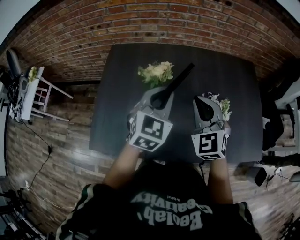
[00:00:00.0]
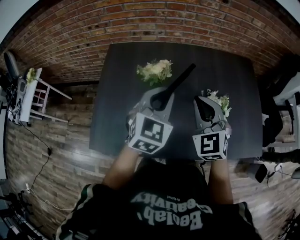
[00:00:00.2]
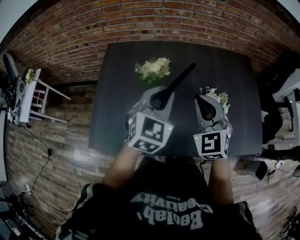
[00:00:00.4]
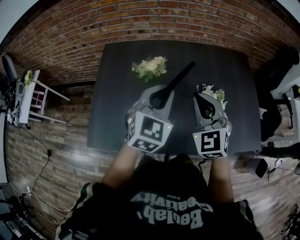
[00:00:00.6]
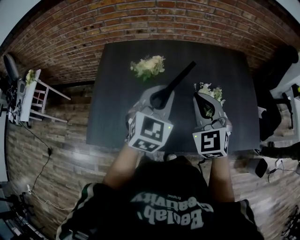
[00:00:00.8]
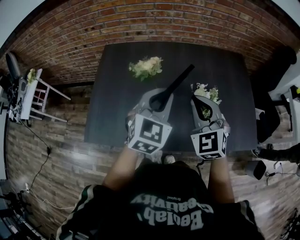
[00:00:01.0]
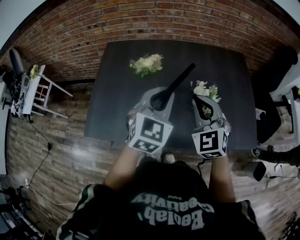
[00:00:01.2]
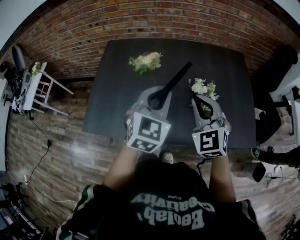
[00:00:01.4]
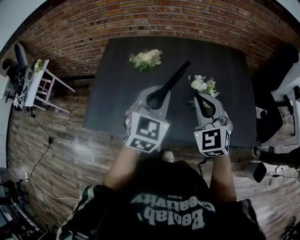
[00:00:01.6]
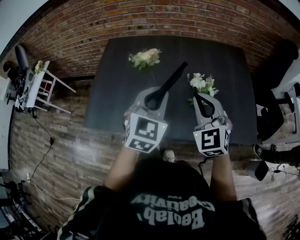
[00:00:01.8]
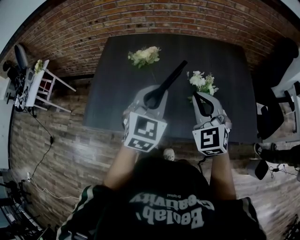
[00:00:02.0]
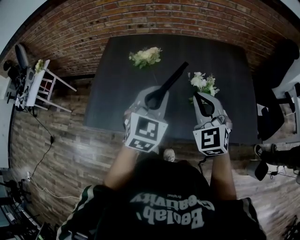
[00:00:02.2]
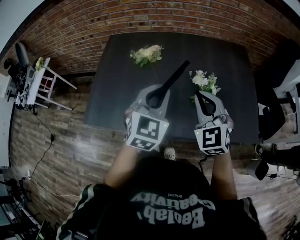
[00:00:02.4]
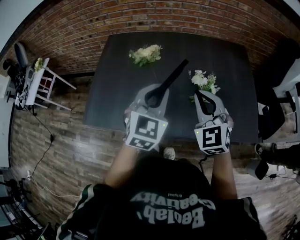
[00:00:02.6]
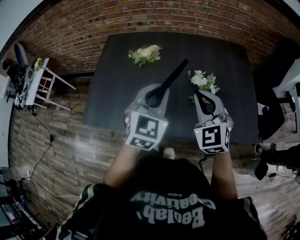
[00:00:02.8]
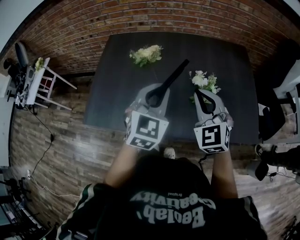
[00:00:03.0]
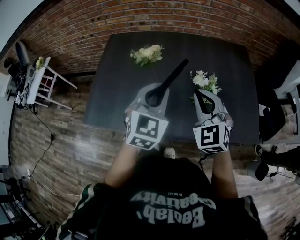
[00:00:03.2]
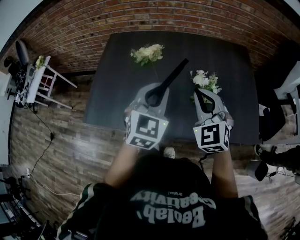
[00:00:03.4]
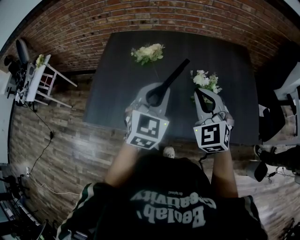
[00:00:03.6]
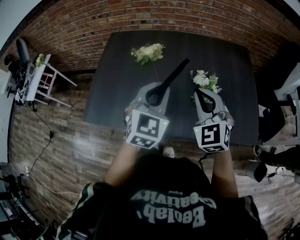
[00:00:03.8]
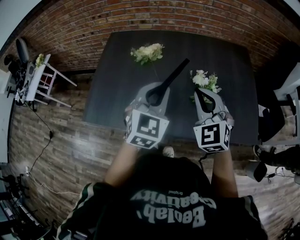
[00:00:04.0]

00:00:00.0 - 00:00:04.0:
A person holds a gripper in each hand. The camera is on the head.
00:00:00.0 - 00:00:01.4: Both grippers move backward and to the right, approximately 15 cm.
00:00:01.4 - 00:00:02.6: The grippers make only small movements.
00:00:02.6 - 00:00:04.0: Both grippers stay put.

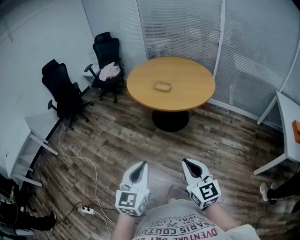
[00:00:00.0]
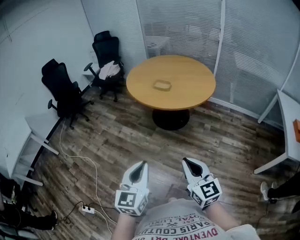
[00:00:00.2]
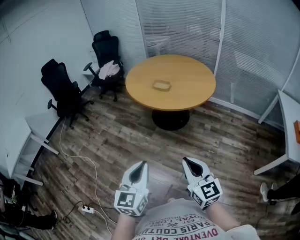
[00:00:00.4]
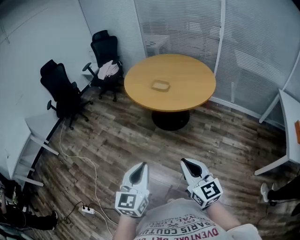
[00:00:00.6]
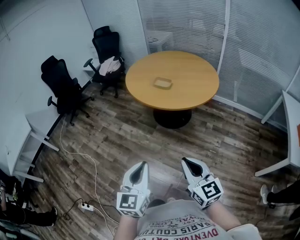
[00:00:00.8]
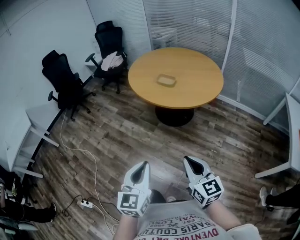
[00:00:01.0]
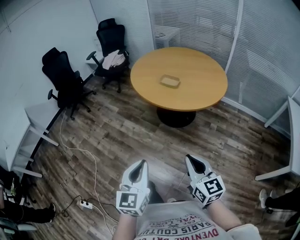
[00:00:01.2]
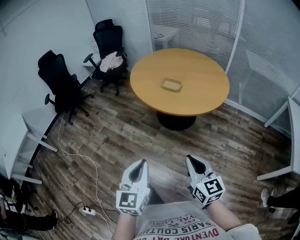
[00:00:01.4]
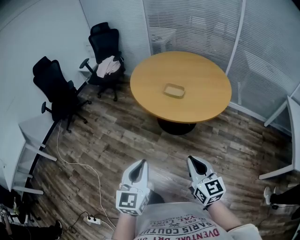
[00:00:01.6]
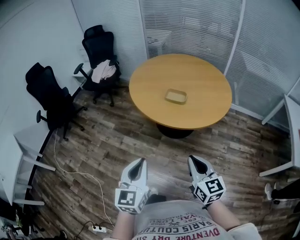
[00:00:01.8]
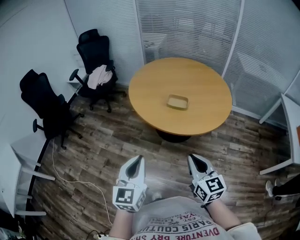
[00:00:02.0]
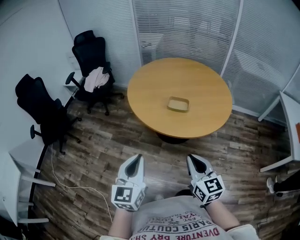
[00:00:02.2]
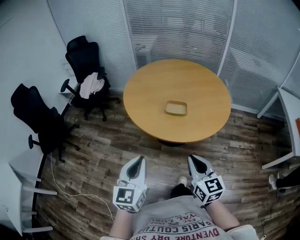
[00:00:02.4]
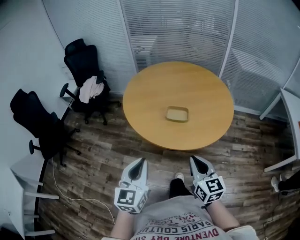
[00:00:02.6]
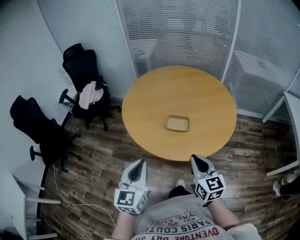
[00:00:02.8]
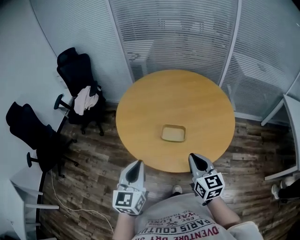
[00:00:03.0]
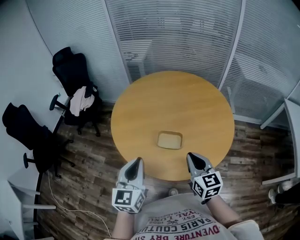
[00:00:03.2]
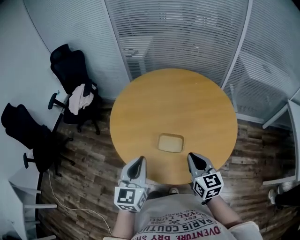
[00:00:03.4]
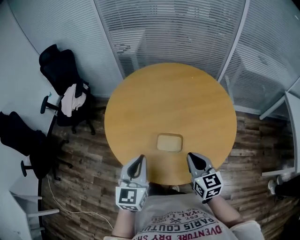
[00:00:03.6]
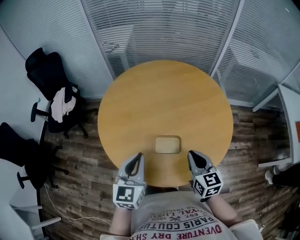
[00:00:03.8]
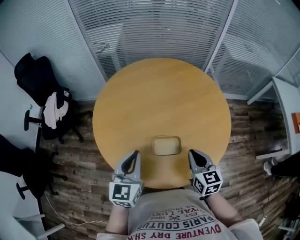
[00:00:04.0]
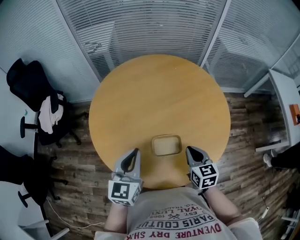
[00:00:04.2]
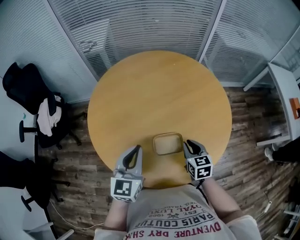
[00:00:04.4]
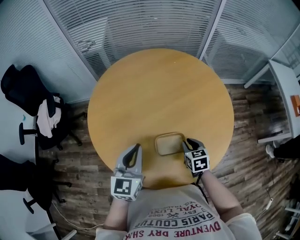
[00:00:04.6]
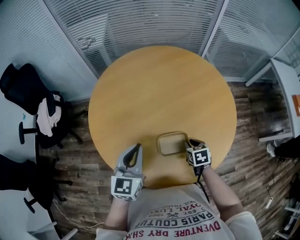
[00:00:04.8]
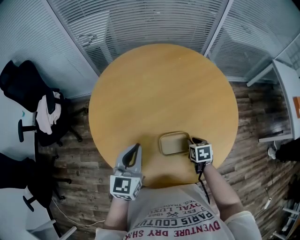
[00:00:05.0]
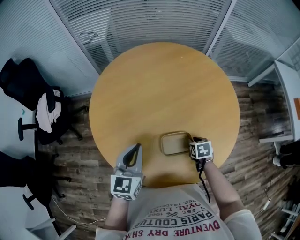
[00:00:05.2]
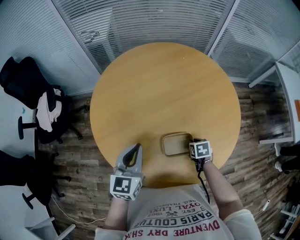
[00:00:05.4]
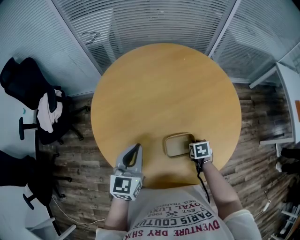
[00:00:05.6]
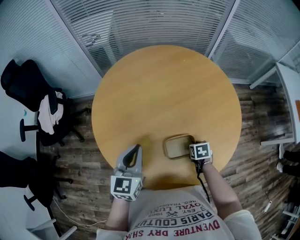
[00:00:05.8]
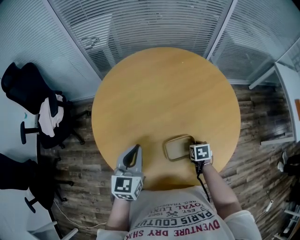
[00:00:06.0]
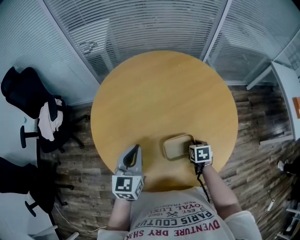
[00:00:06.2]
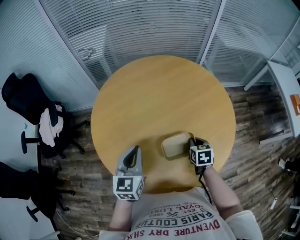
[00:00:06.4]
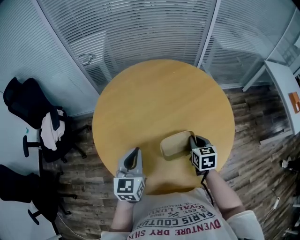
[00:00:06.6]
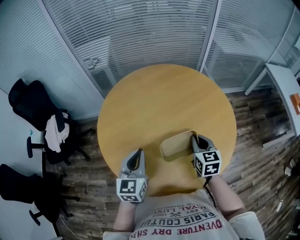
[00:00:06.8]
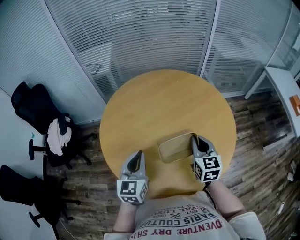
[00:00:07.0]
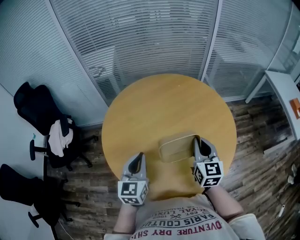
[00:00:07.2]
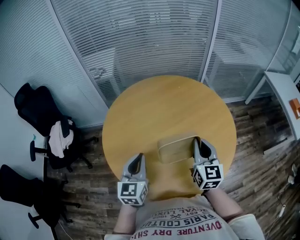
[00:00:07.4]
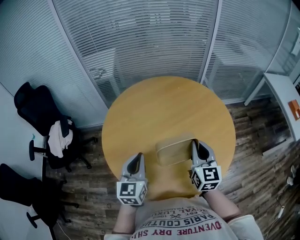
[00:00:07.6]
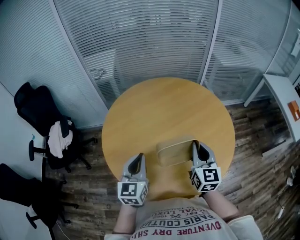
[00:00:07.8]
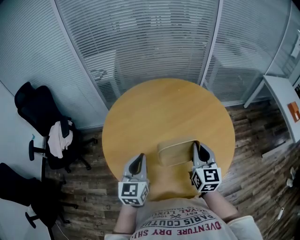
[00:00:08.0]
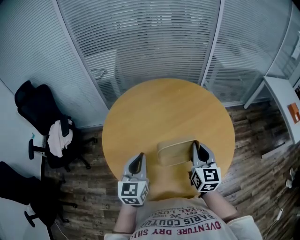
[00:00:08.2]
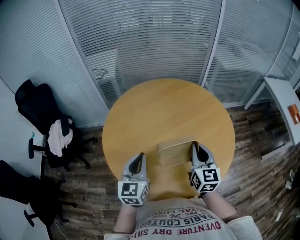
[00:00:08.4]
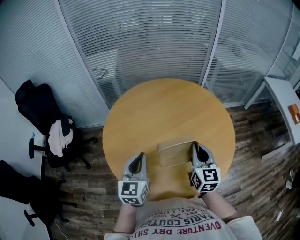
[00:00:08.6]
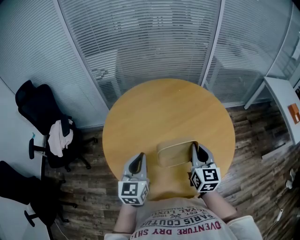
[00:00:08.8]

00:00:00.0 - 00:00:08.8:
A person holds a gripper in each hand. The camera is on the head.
00:00:00.0 - 00:00:01.4: The two grippers go about 20 cm forward.
00:00:01.4 - 00:00:03.0: Both grippers are carried forward, roughly 50 cm.
00:00:03.0 - 00:00:04.4: The left gripper goes approximately 30 cm forward, and turns by roughly 20 degrees, while the right gripper heads forward and downward, covering approximately 30 cm, and turns by roughly 30 degrees.
00:00:04.4 - 00:00:05.8: The right gripper is displaced downward by some 15 cm, and tips its fingers downward by about 30 degrees. Meanwhile the left gripper shifts by about 10 cm.
00:00:05.8 - 00:00:07.4: The left gripper moves upward, some 5 cm, while the right gripper moves upward, some 30 cm, and points its fingers some 60 degrees further upward.
00:00:07.4 - 00:00:08.8: The grippers make only small movements.

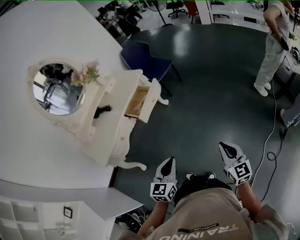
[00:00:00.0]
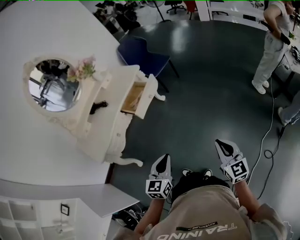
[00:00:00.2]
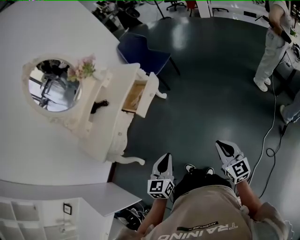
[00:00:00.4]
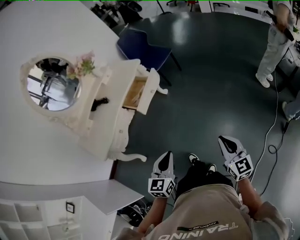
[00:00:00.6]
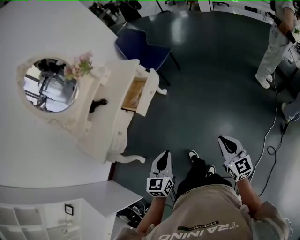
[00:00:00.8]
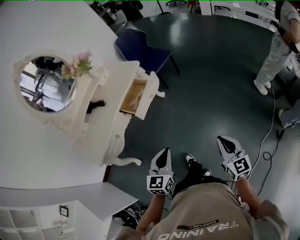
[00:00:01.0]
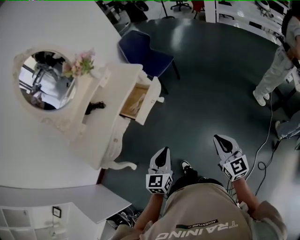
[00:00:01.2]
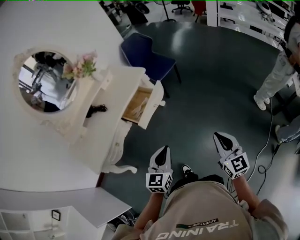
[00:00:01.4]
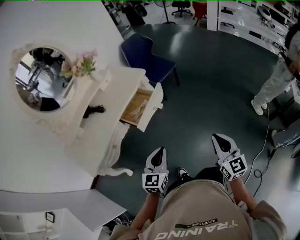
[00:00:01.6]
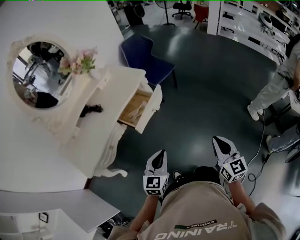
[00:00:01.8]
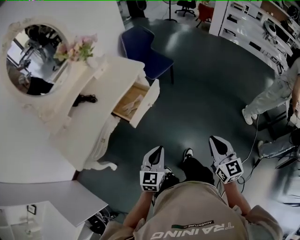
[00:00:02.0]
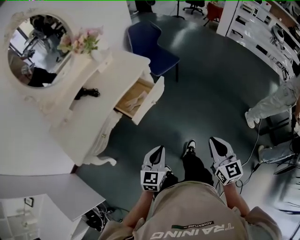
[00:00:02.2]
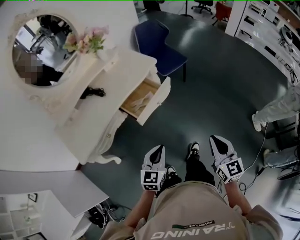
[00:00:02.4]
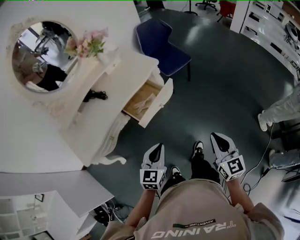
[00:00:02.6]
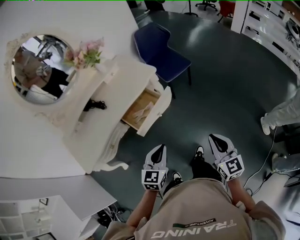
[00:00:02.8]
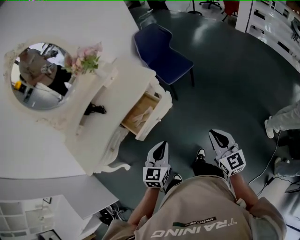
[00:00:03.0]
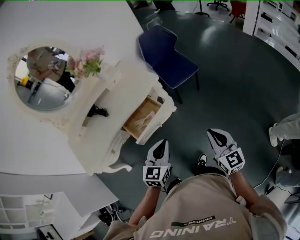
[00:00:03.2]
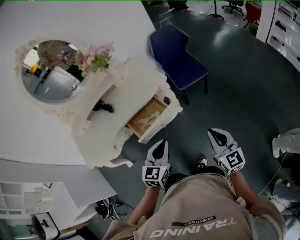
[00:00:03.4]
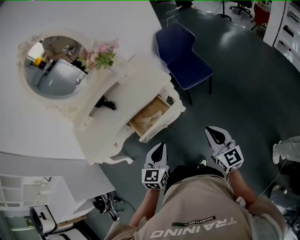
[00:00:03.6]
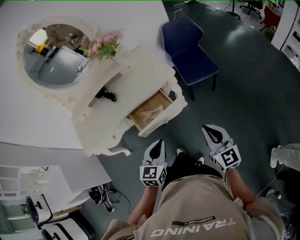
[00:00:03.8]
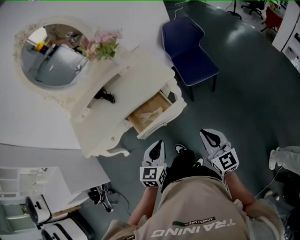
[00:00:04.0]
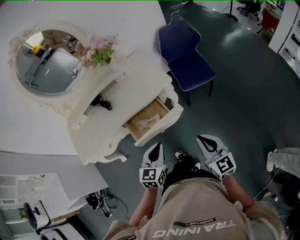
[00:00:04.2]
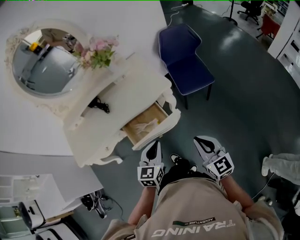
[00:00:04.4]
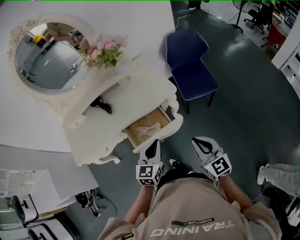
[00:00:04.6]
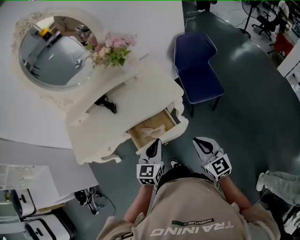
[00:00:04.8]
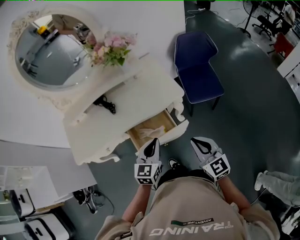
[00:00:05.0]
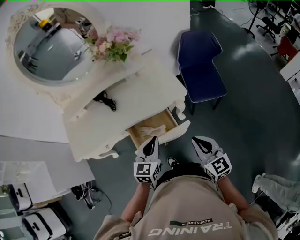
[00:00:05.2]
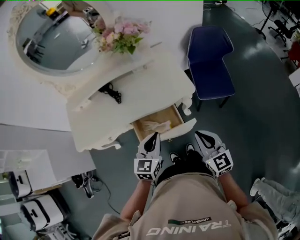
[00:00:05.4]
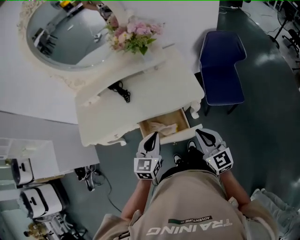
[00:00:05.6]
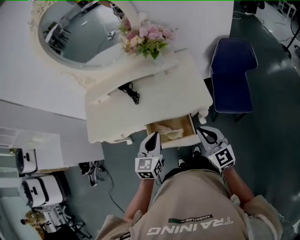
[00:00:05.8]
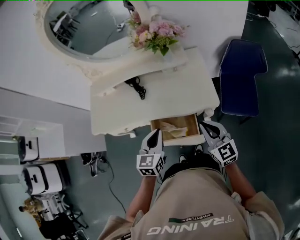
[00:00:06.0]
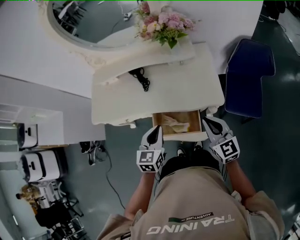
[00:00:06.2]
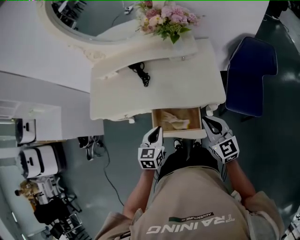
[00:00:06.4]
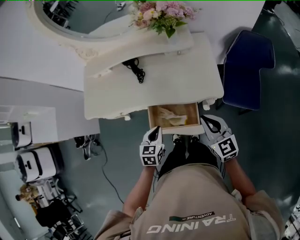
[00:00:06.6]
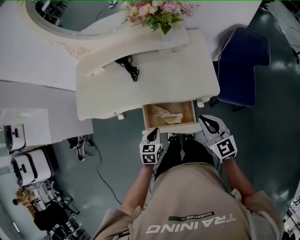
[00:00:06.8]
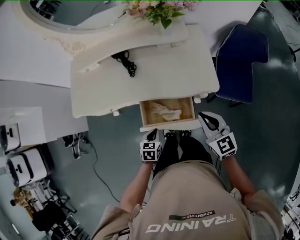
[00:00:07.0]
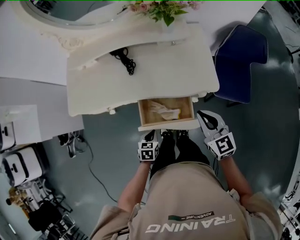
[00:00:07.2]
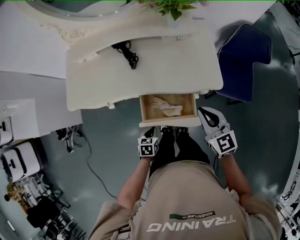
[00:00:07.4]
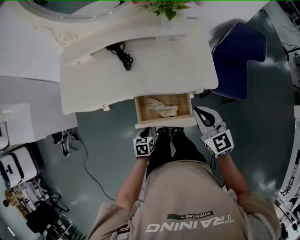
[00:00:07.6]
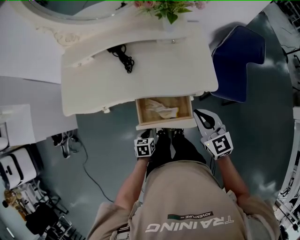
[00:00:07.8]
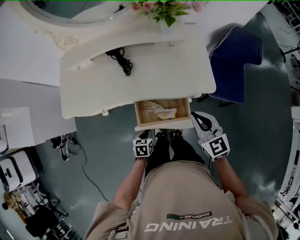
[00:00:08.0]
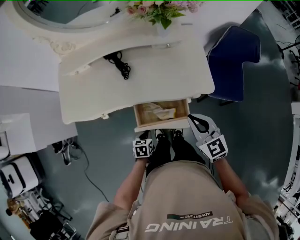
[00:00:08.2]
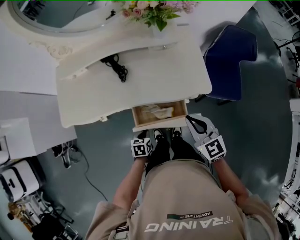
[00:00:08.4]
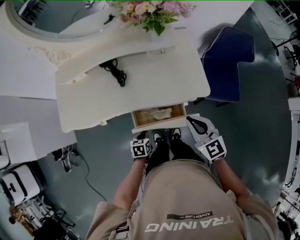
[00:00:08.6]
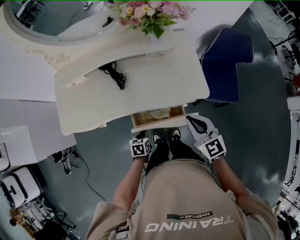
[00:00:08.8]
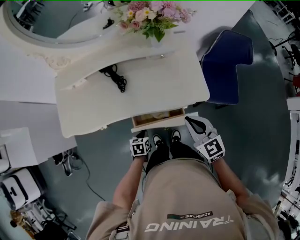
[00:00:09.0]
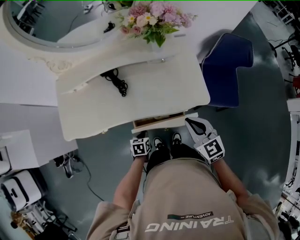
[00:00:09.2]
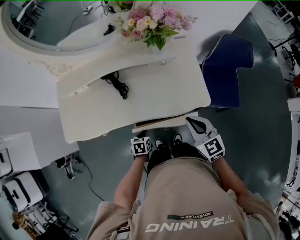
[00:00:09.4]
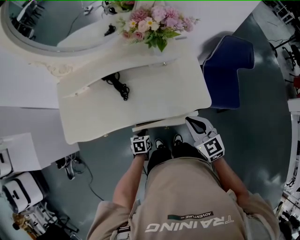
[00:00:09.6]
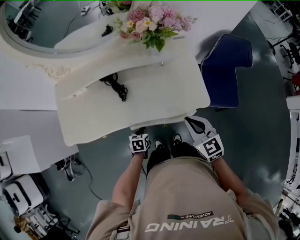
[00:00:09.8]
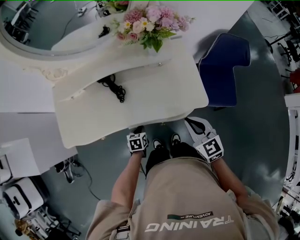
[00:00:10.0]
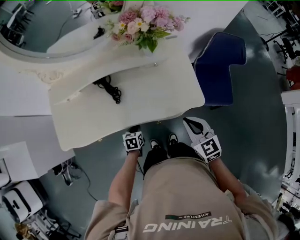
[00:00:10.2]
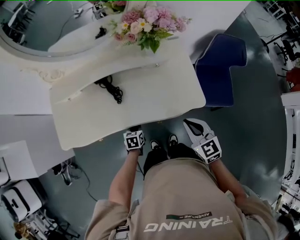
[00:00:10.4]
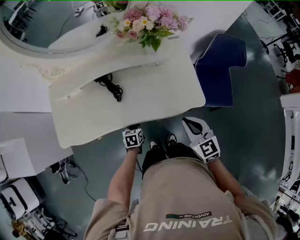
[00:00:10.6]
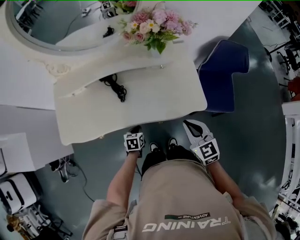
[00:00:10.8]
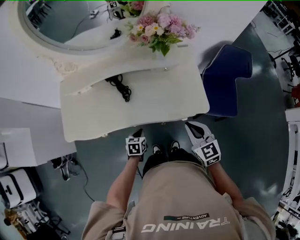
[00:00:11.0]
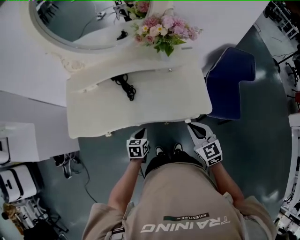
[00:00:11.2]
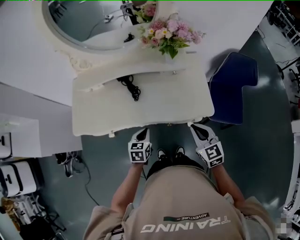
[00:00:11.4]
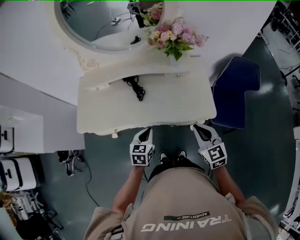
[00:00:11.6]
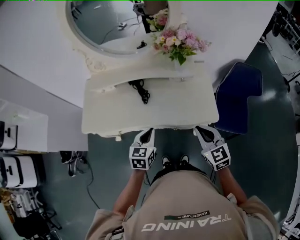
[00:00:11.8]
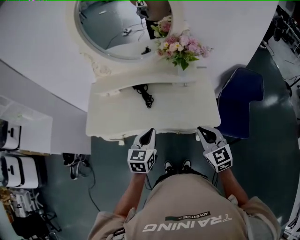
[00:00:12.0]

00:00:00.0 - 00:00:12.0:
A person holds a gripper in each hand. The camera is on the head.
00:00:00.0 - 00:00:01.6: The grippers both shift forward by about 20 cm.
00:00:01.6 - 00:00:03.0: Both grippers travel together forward, about 20 cm.
00:00:03.0 - 00:00:04.4: Both grippers travel together forward, some 15 cm. The right gripper swivels approximately 20 degrees; the left gripper changes its angle by some 20 degrees.
00:00:04.4 - 00:00:06.0: The left gripper ends up approximately 15 cm from where it was, and turns by approximately 30 degrees. Meanwhile the right gripper changes place by approximately 25 cm, and rotates approximately 30 degrees.
00:00:06.0 - 00:00:07.6: The right gripper shifts by some 5 cm; the left gripper travels downward by about 30 cm, and tips its fingers downward by roughly 30 degrees.
00:00:07.6 - 00:00:09.0: The left gripper shifts about 10 cm forward.
00:00:09.0 - 00:00:10.4: The left gripper moves forward, about 10 cm.
00:00:10.4 - 00:00:12.0: The right gripper heads upward, covering some 10 cm. The left gripper travels upward by roughly 30 cm, and points its fingers about 30 degrees further upward.
